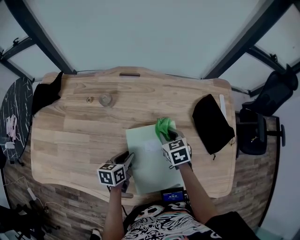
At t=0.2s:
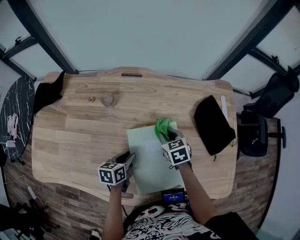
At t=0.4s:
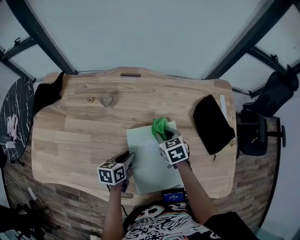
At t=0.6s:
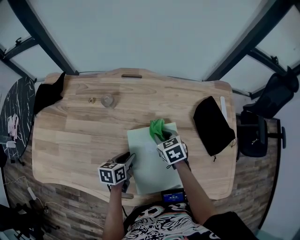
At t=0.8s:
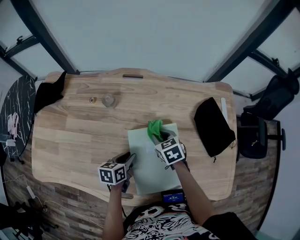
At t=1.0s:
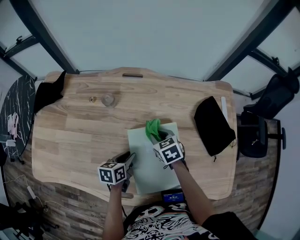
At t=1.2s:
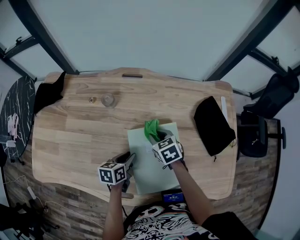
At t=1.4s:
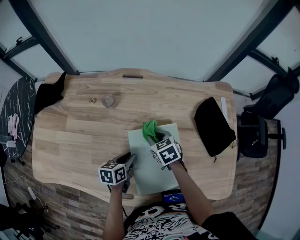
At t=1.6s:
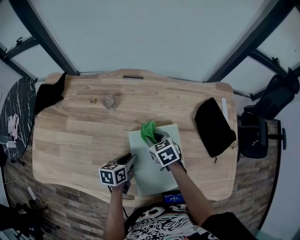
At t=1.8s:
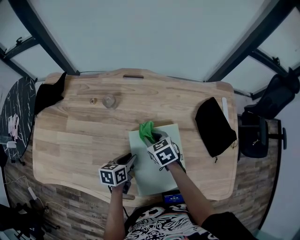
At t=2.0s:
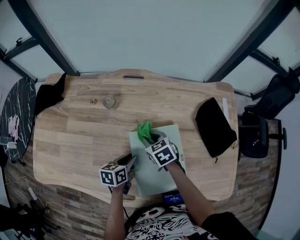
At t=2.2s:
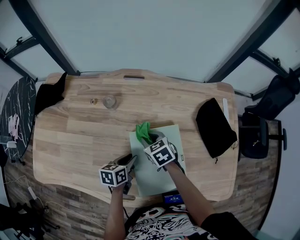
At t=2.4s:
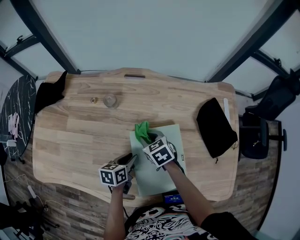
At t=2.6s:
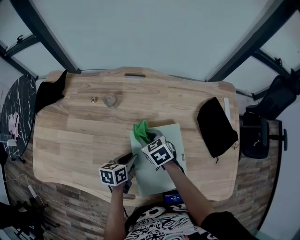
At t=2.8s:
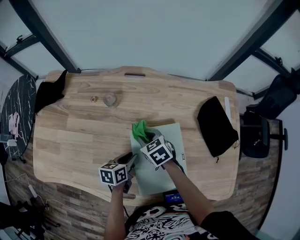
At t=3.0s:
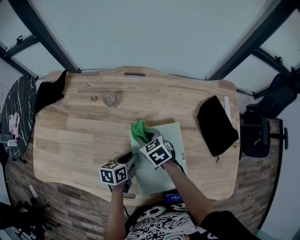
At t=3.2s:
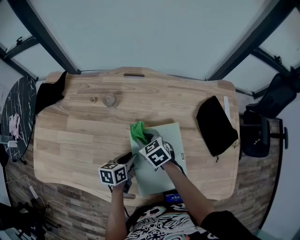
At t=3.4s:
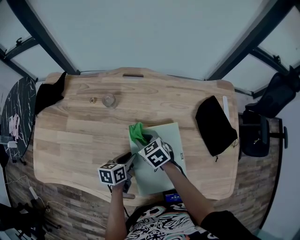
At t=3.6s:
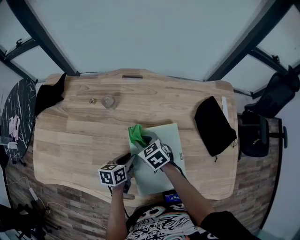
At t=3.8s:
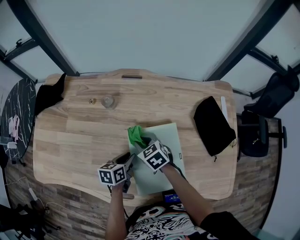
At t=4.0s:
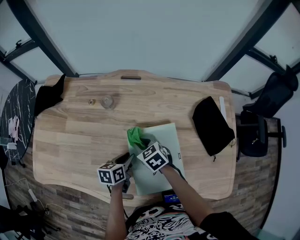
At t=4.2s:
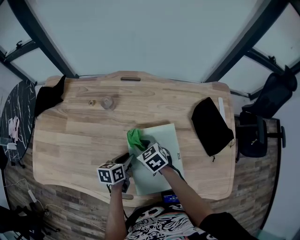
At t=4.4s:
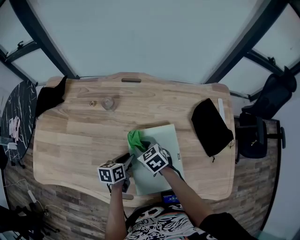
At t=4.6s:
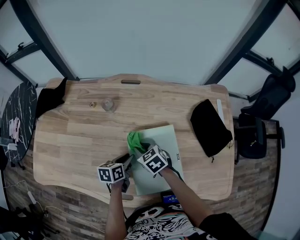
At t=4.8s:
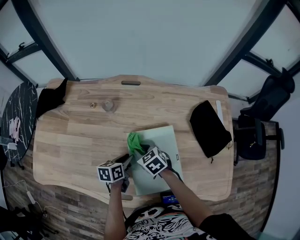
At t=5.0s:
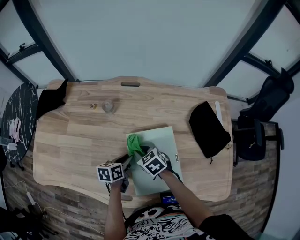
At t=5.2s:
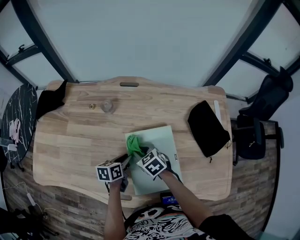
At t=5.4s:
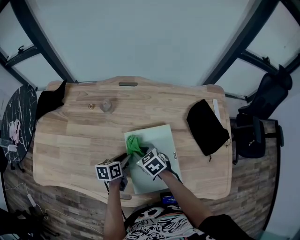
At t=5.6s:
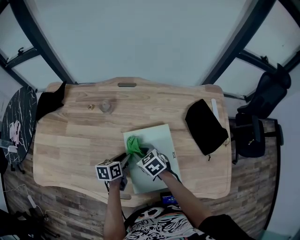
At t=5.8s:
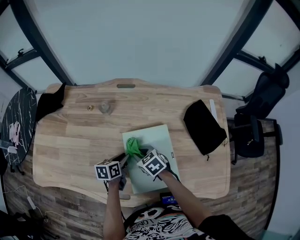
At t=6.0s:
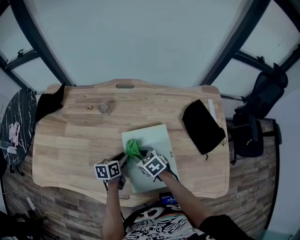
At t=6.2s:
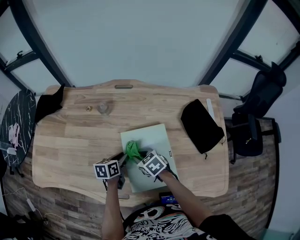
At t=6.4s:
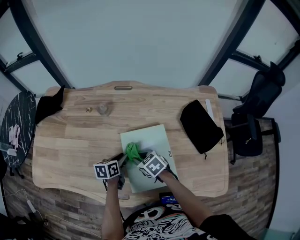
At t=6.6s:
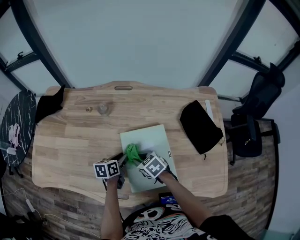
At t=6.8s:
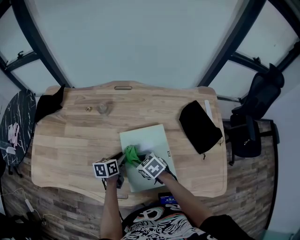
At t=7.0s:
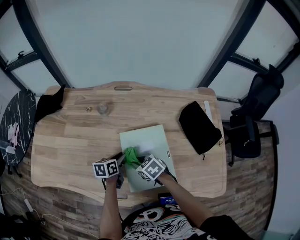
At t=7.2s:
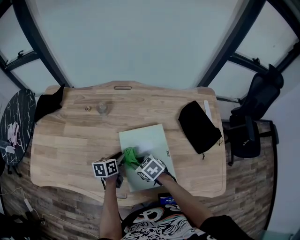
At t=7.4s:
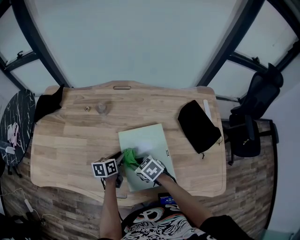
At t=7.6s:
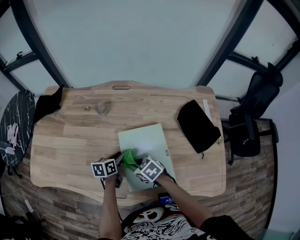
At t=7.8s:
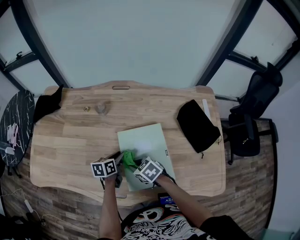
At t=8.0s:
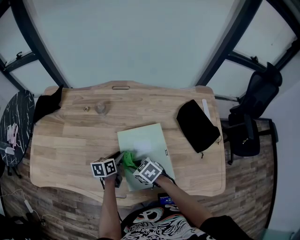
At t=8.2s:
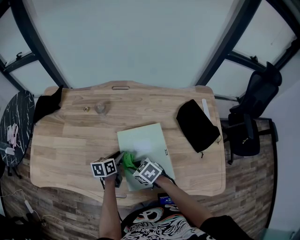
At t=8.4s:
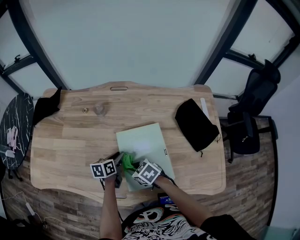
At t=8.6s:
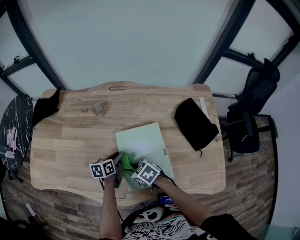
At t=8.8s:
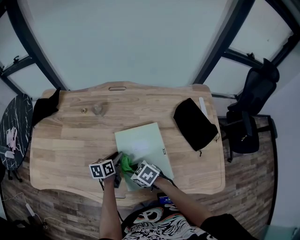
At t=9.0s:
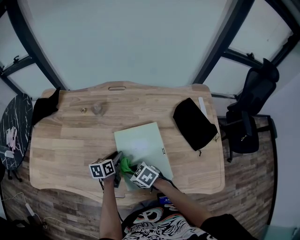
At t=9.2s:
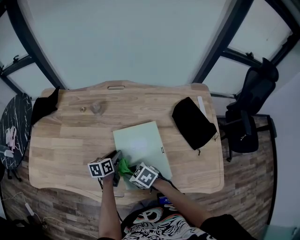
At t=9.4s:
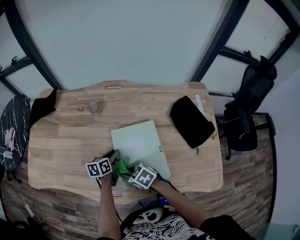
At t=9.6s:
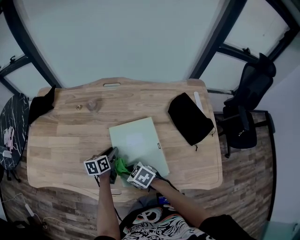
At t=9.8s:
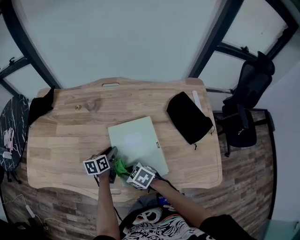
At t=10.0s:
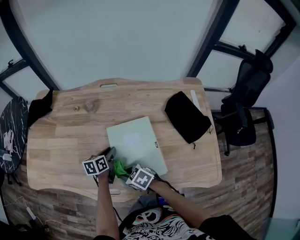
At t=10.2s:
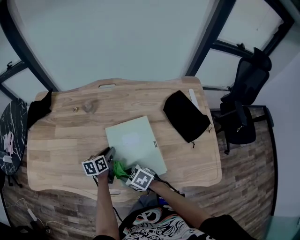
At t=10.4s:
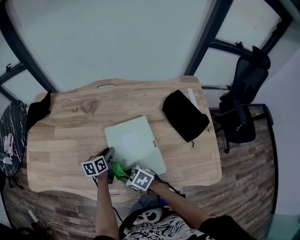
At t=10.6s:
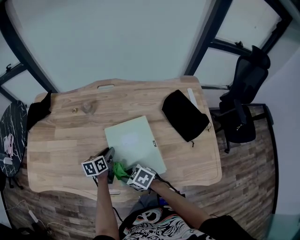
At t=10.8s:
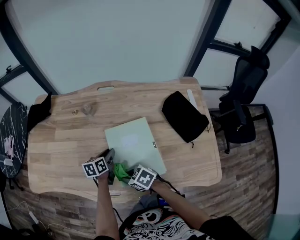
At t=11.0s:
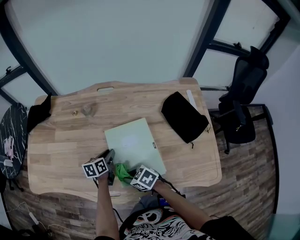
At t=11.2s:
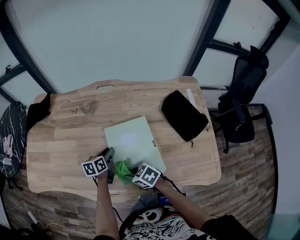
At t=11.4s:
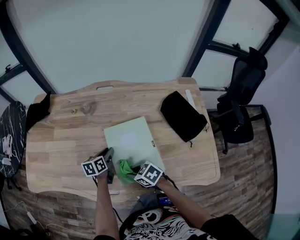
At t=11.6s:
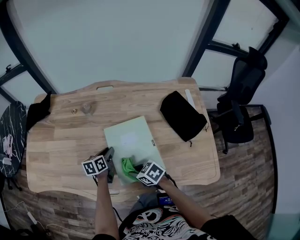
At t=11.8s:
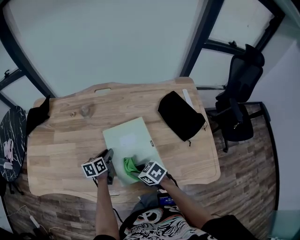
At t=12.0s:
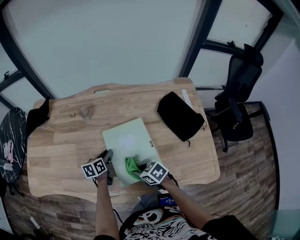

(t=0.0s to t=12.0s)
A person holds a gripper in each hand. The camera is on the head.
t=0.0s - t=1.6s: The right gripper travels to the left by roughly 10 cm.
t=1.6s - t=3.0s: The right gripper travels to the left by some 5 cm.
t=3.0s - t=4.4s: There are only small adjustments of the grippers.
t=4.4s - t=6.0s: The right gripper is displaced backward by about 5 cm.
t=6.0s - t=7.6s: The right gripper travels backward by approximately 5 cm.
t=7.6s - t=9.0s: There are only small adjustments of the grippers.
t=9.0s - t=10.4s: The grippers stay close to where they were, moving slightly.
t=10.4s - t=12.0s: The right gripper is displaced to the right by about 10 cm.

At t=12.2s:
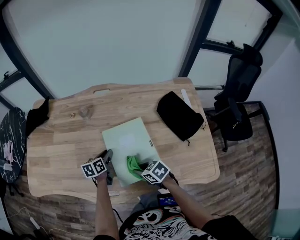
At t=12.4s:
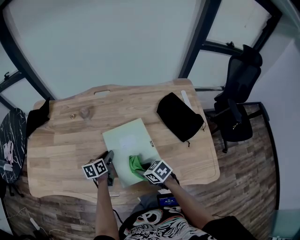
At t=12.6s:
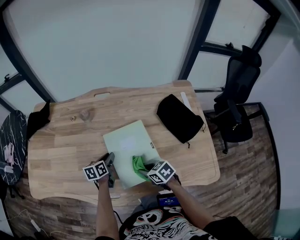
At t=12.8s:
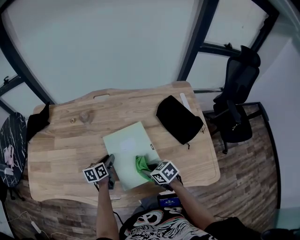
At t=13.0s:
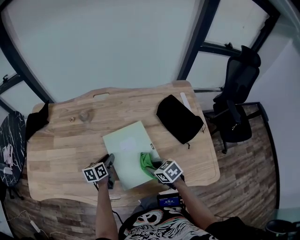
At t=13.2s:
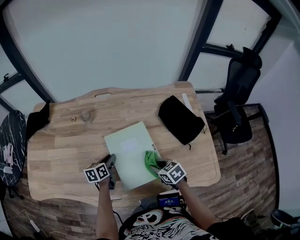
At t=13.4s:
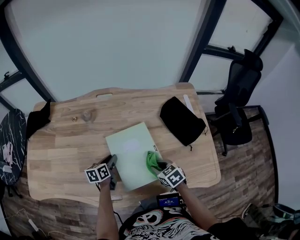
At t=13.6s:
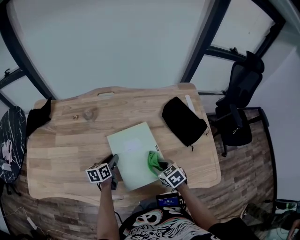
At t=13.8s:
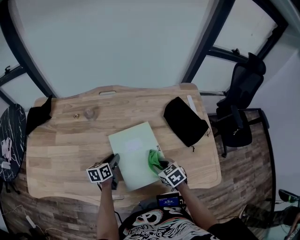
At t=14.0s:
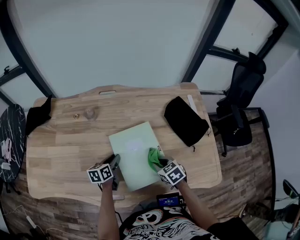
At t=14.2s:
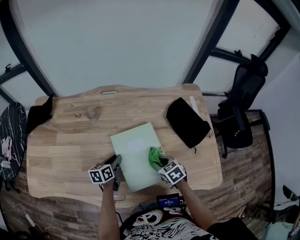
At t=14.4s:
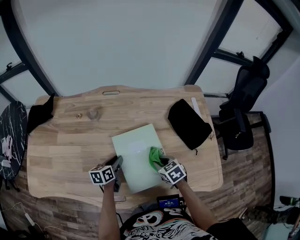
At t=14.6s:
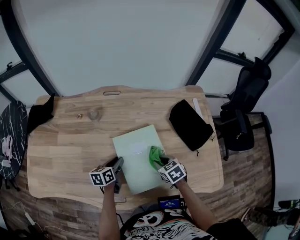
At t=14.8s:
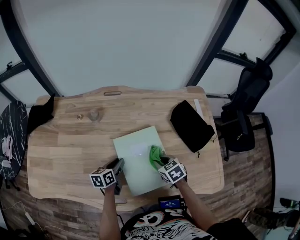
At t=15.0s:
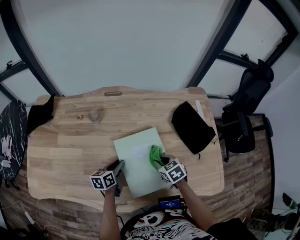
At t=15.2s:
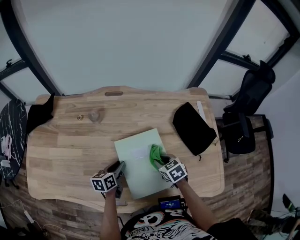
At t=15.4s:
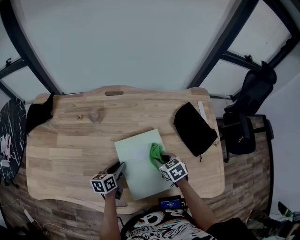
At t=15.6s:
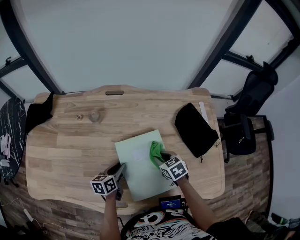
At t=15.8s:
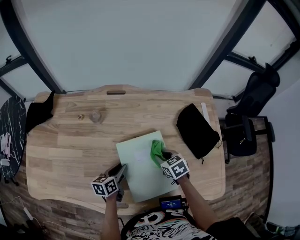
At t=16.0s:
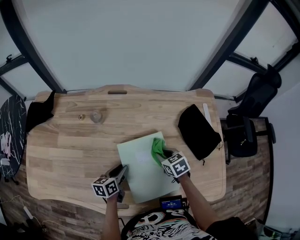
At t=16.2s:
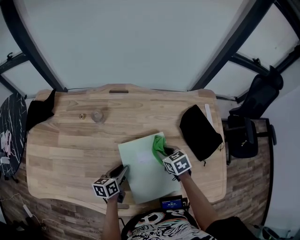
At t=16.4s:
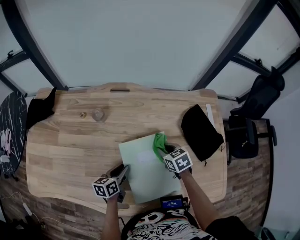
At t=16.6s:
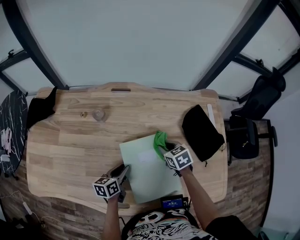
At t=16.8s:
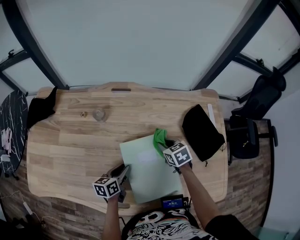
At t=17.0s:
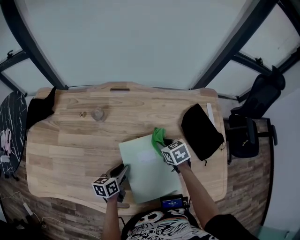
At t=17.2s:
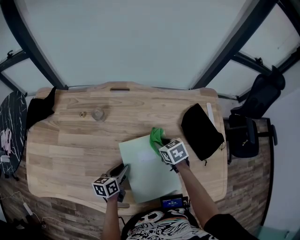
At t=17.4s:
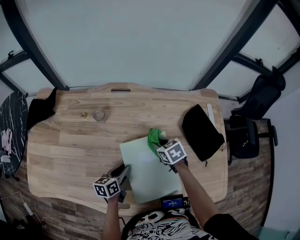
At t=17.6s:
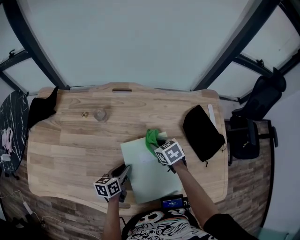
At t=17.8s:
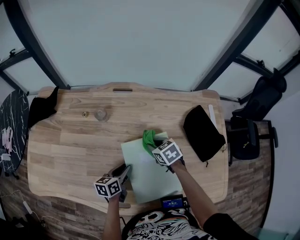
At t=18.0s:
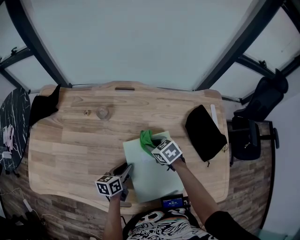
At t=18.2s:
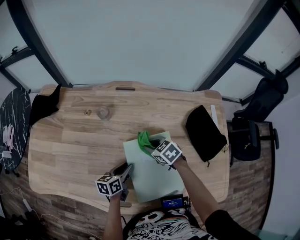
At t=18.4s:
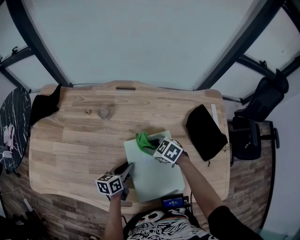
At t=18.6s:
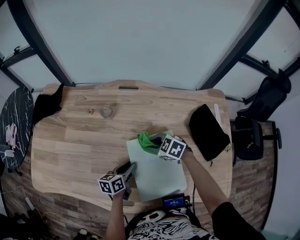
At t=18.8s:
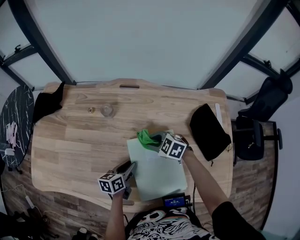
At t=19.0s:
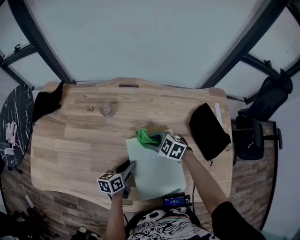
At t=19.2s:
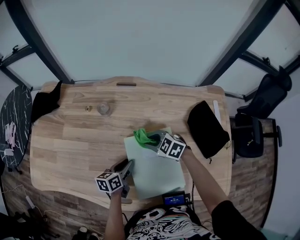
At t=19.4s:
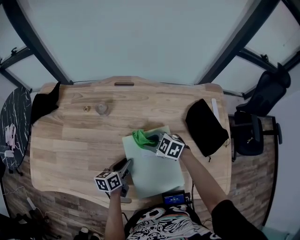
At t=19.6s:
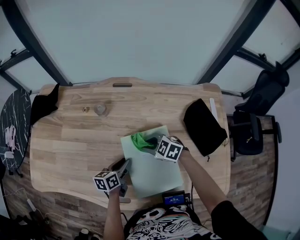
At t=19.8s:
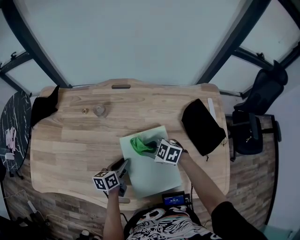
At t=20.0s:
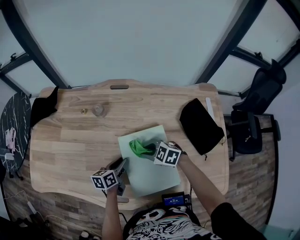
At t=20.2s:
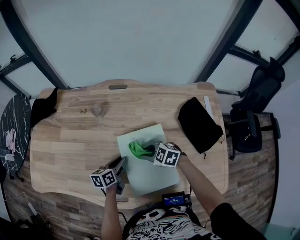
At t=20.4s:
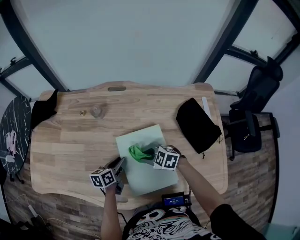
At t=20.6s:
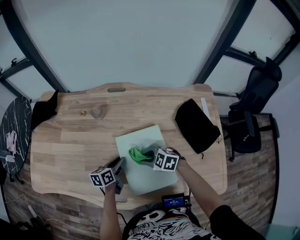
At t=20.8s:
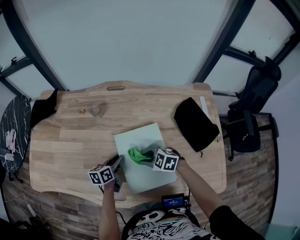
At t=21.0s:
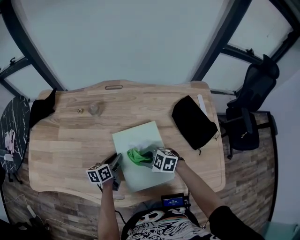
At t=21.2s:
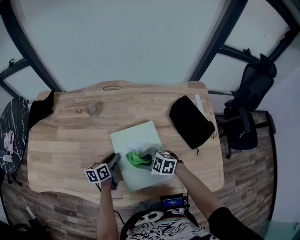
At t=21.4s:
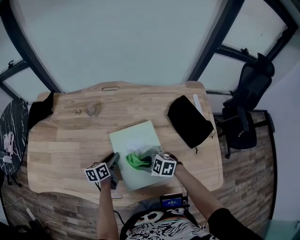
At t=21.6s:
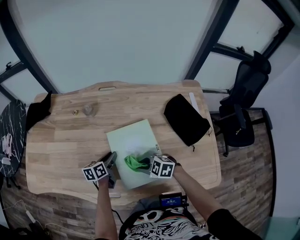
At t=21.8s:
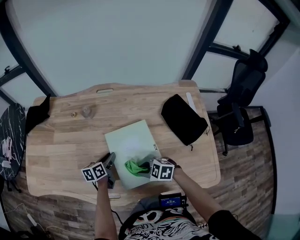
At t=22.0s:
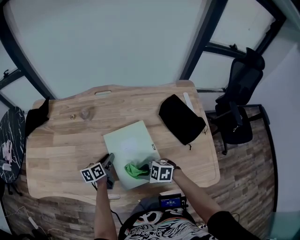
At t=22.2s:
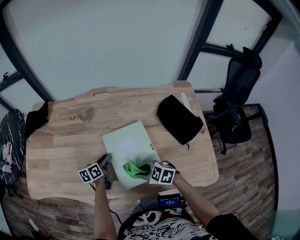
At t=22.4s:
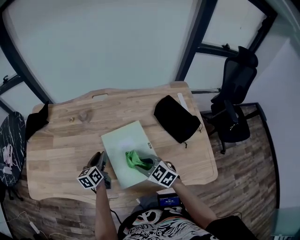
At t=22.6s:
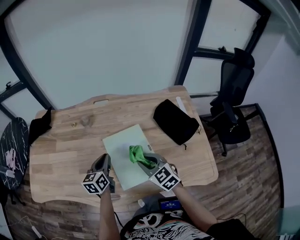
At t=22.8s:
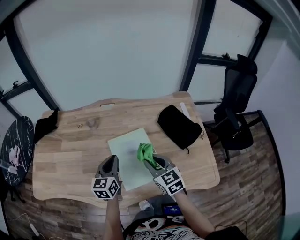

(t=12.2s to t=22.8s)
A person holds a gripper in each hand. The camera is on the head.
t=12.2s - t=13.8s: The right gripper travels to the right by roughly 10 cm, and rotates about 20 degrees.
t=13.8s - t=15.2s: The right gripper moves forward, about 5 cm.
t=15.2s - t=16.8s: The right gripper goes roughly 10 cm forward.
t=16.8s - t=18.2s: The right gripper goes some 10 cm to the left, and rotates some 20 degrees.
t=18.2s - t=19.8s: The right gripper changes place by some 5 cm, and swivels approximately 30 degrees.
t=19.8s - t=21.2s: The right gripper shifts some 10 cm backward.
t=21.2s - t=22.8s: The left gripper shifts about 15 cm upward, changes its angle by approximately 40 degrees, and closes. The right gripper travels upward and to the right by some 15 cm, and swivels some 60 degrees.

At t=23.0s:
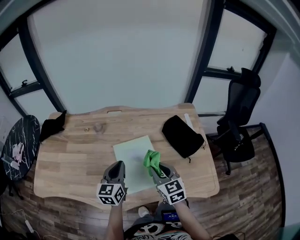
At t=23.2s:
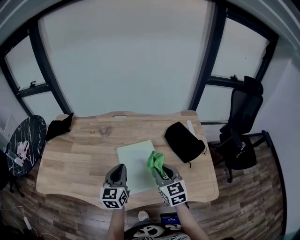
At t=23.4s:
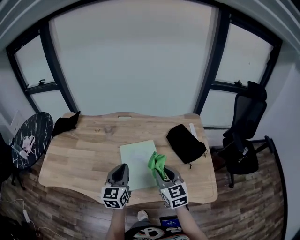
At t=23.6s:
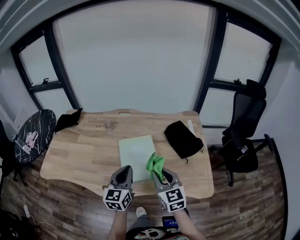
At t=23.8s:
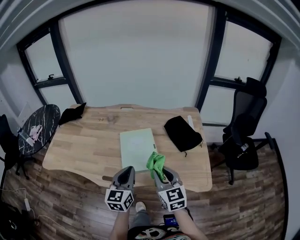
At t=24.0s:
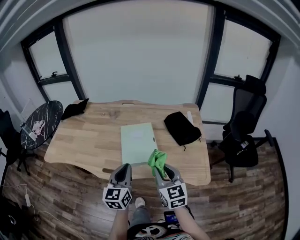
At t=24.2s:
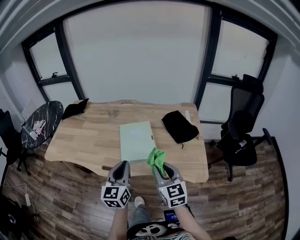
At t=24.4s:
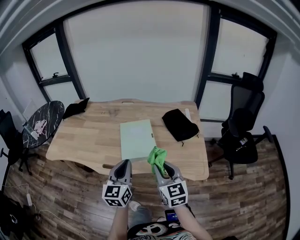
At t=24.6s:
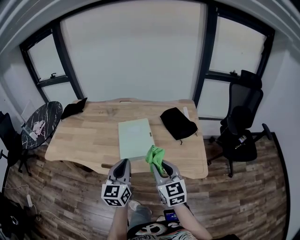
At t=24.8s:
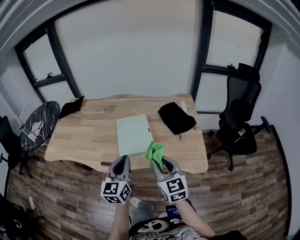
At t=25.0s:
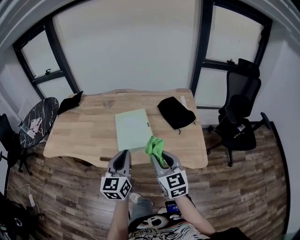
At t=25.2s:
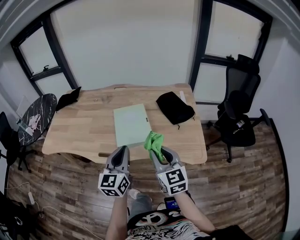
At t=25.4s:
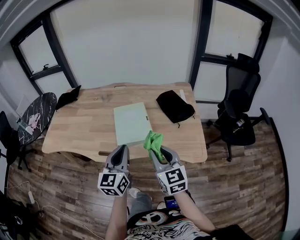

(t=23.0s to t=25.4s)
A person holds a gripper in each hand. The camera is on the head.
t=23.0s - t=24.2s: Both grippers move backward, about 20 cm.
t=24.2s - t=25.4s: There are only small adjustments of the grippers.
